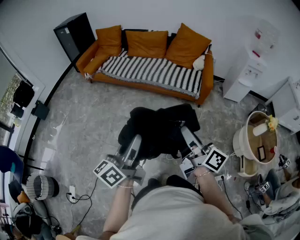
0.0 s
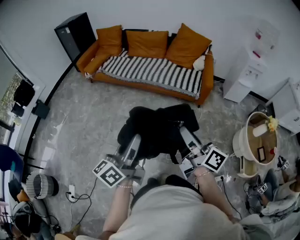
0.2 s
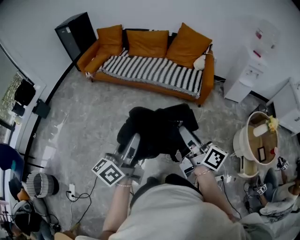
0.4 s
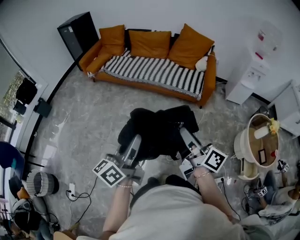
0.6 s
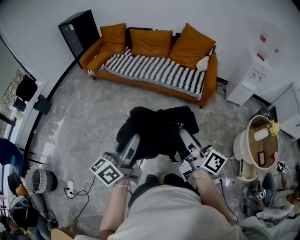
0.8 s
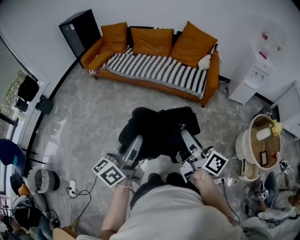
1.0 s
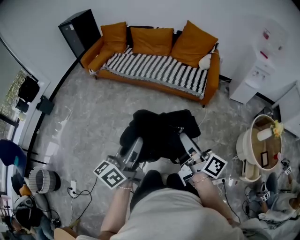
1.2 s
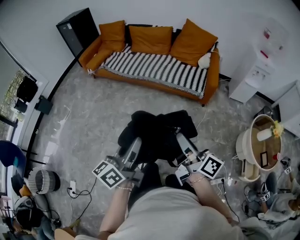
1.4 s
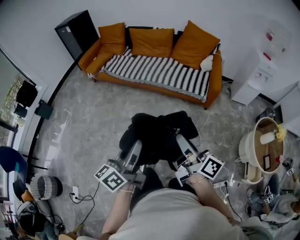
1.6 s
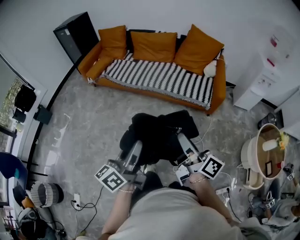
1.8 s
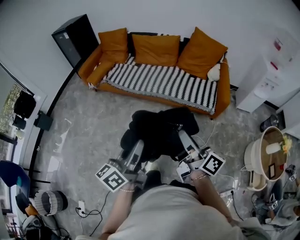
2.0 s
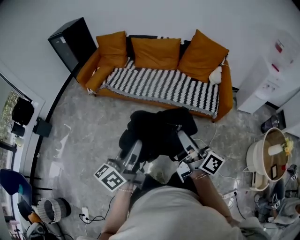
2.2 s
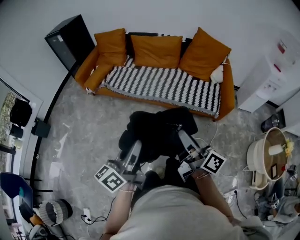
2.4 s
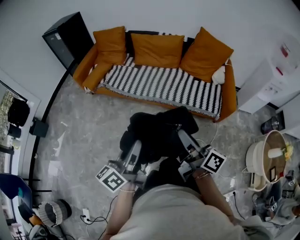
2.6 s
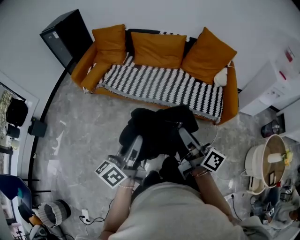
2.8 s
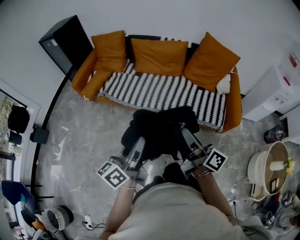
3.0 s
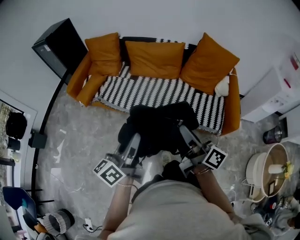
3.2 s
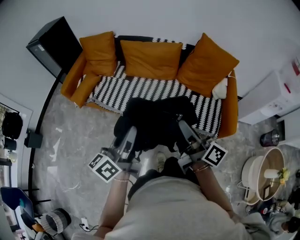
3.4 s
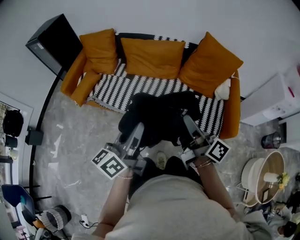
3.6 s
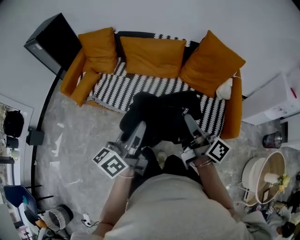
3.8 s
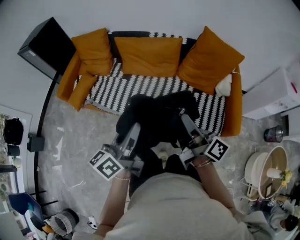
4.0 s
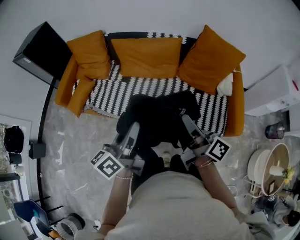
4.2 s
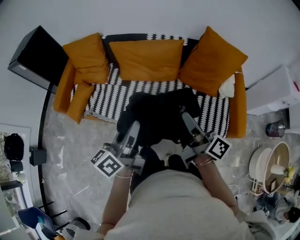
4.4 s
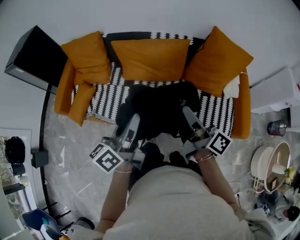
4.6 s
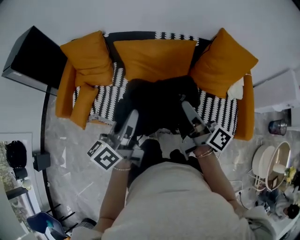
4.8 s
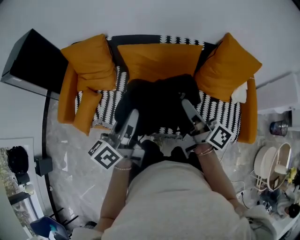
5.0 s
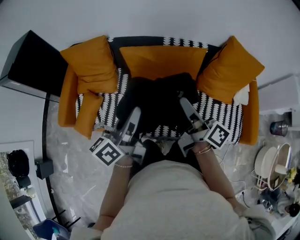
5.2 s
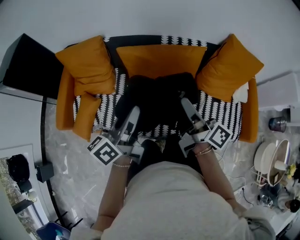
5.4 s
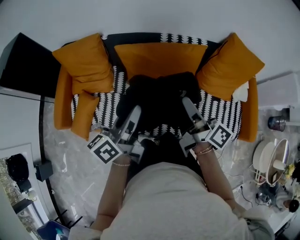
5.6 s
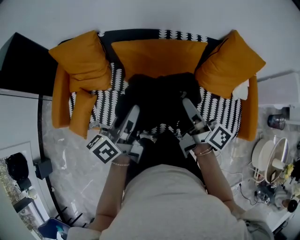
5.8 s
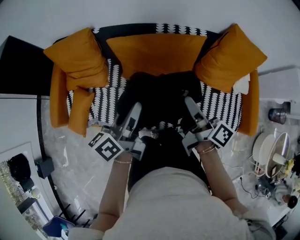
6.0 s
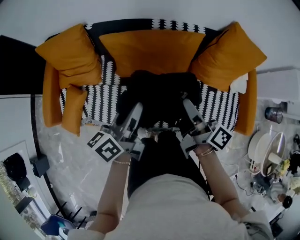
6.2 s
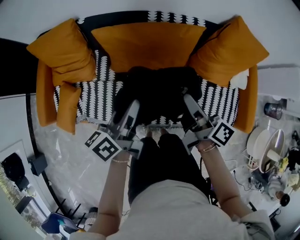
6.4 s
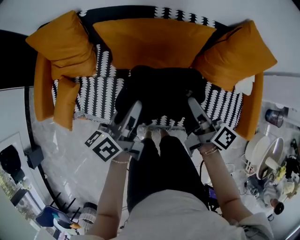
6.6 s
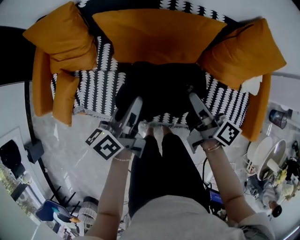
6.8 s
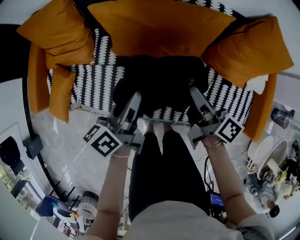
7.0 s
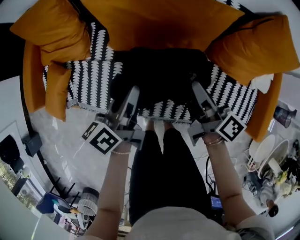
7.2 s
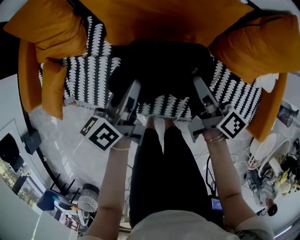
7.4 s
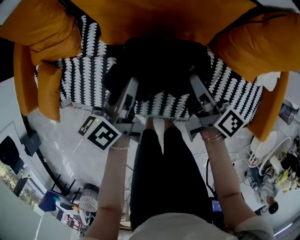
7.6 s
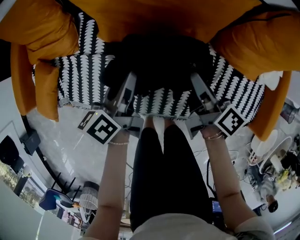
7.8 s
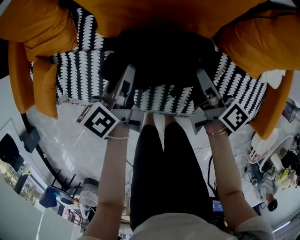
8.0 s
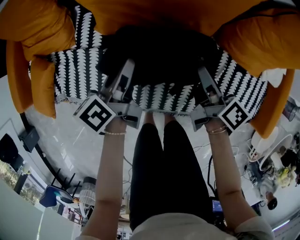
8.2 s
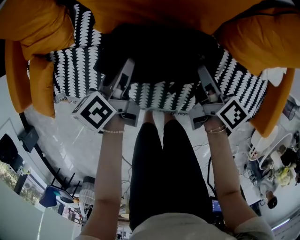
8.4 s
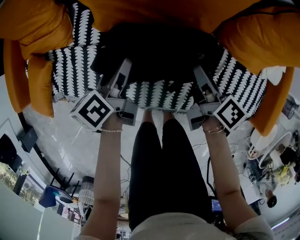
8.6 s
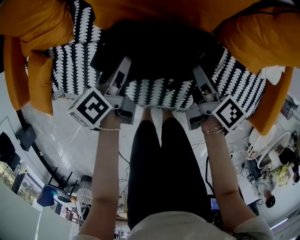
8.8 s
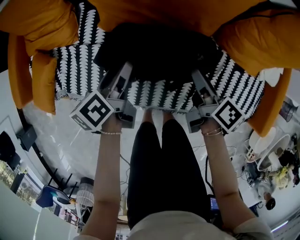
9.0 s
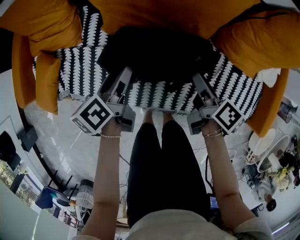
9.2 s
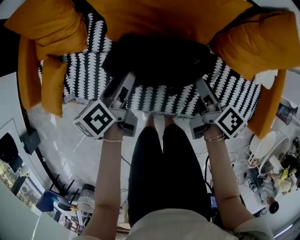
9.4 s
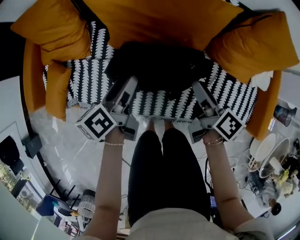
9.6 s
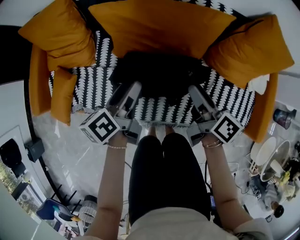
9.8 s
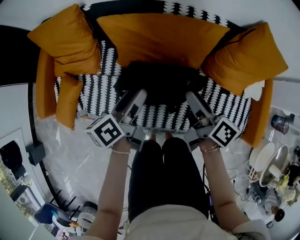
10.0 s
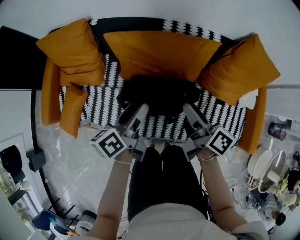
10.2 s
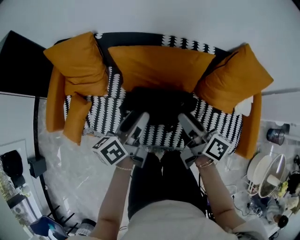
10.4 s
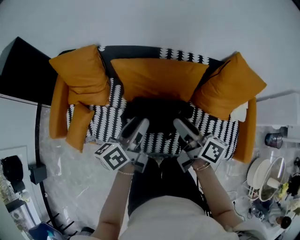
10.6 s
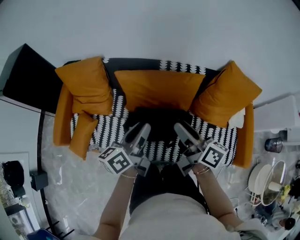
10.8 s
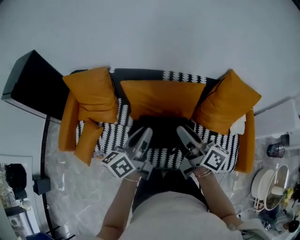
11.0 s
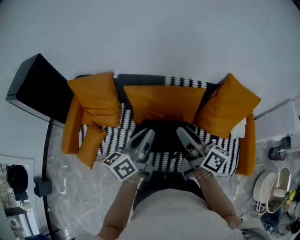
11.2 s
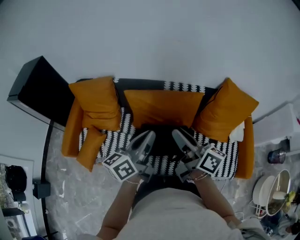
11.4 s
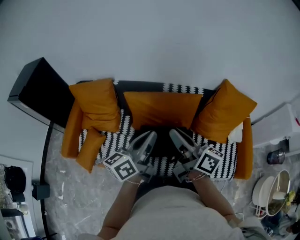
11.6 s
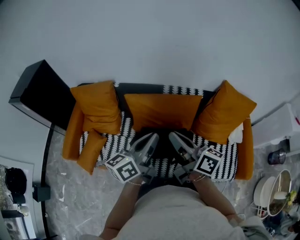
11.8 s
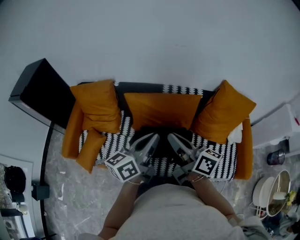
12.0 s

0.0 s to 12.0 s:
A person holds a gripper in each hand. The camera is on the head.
0.0 to 1.6 s: Both grippers travel together forward, approximately 5 cm.
1.6 to 3.0 s: The pair of grippers is taken forward, roughly 40 cm.
3.0 to 4.4 s: The grippers both shift forward by some 35 cm.
4.4 to 6.0 s: The grippers both shift forward and to the left by approximately 30 cm.
6.0 to 7.6 s: The grippers both shift downward by approximately 25 cm.
7.6 to 9.0 s: Both grippers travel together downward, roughly 5 cm. The left gripper opens its fingers; the right gripper opens its fingers.
9.0 to 10.4 s: The two grippers go about 25 cm upward. The right gripper turns by roughly 20 degrees. Meanwhile the left gripper changes its angle by about 20 degrees.
10.4 to 12.0 s: The grippers both shift upward by roughly 15 cm. The left gripper rotates approximately 20 degrees, and closes, while the right gripper changes its angle by about 20 degrees, and closes its fingers.

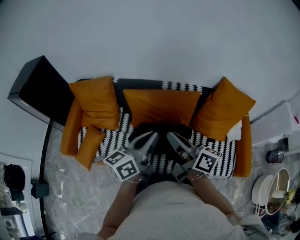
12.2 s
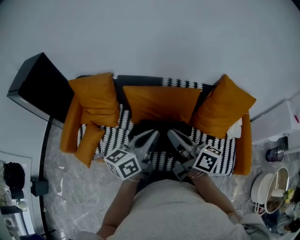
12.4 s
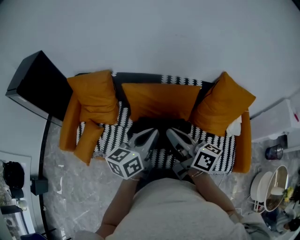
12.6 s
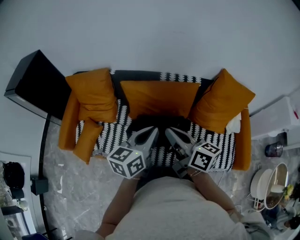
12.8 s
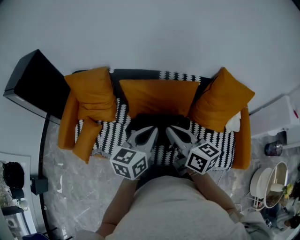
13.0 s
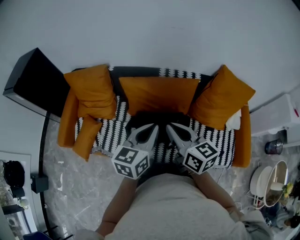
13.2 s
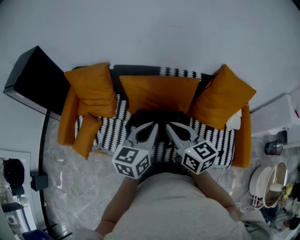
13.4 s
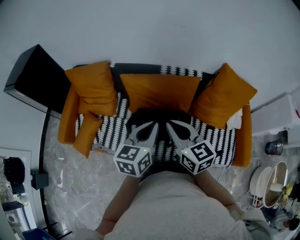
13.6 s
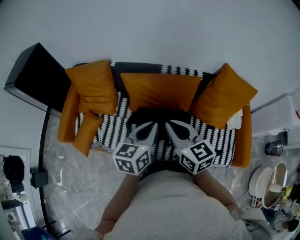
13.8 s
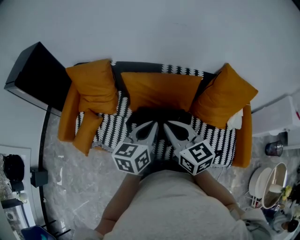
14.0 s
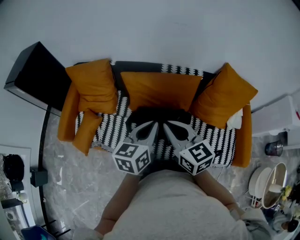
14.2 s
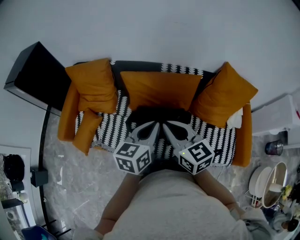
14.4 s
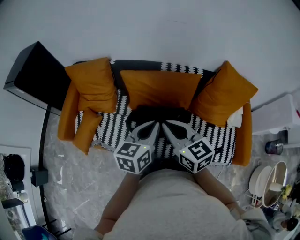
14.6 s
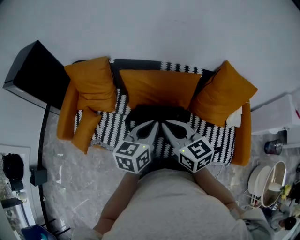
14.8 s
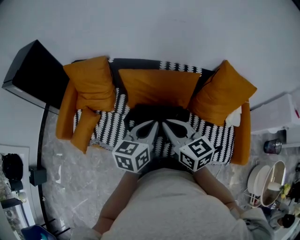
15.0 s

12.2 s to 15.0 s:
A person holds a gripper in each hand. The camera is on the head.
12.2 to 13.6 s: The left gripper changes its angle by roughly 30 degrees. The right gripper rolls counterclockwise, seen from behind, by roughly 40 degrees.
13.6 to 15.0 s: The grippers move only a little.

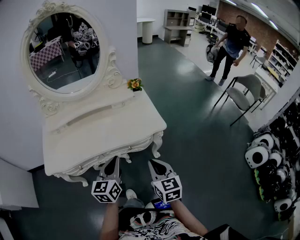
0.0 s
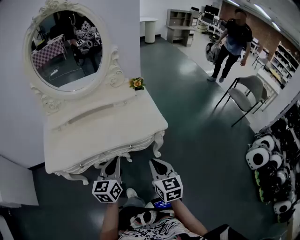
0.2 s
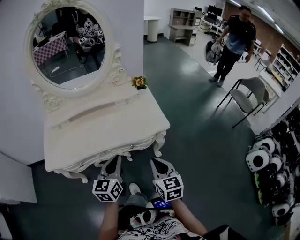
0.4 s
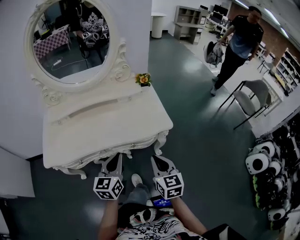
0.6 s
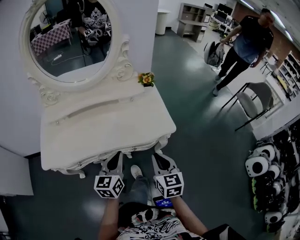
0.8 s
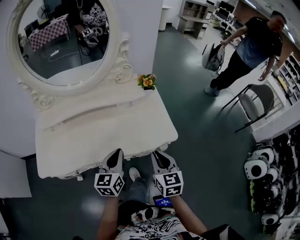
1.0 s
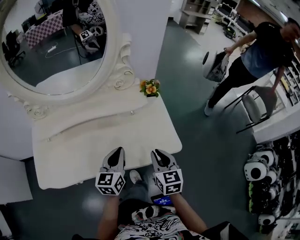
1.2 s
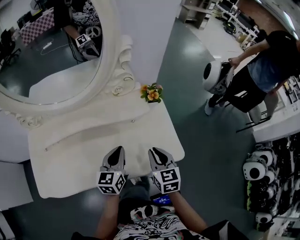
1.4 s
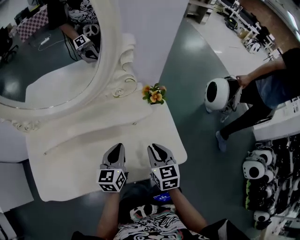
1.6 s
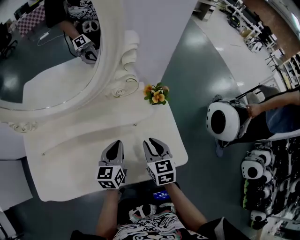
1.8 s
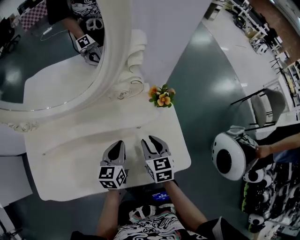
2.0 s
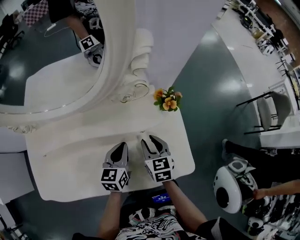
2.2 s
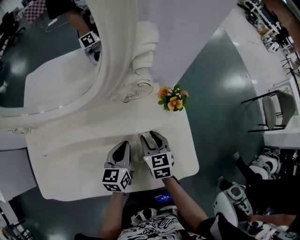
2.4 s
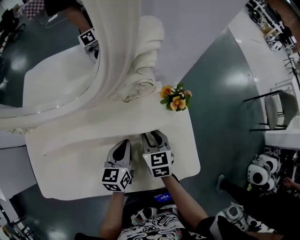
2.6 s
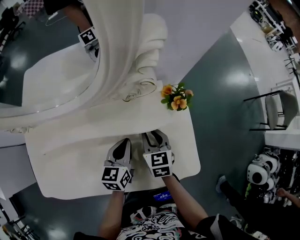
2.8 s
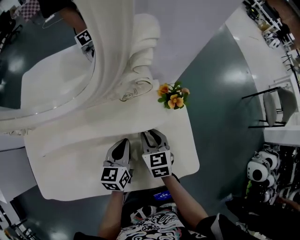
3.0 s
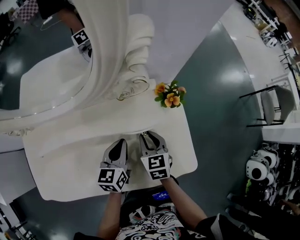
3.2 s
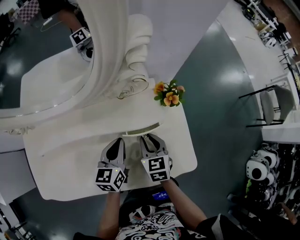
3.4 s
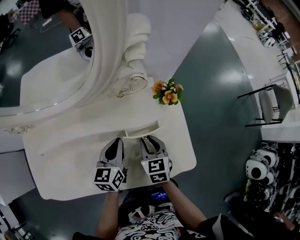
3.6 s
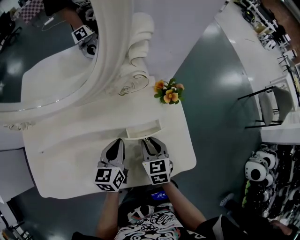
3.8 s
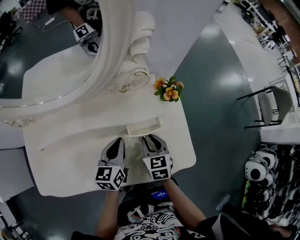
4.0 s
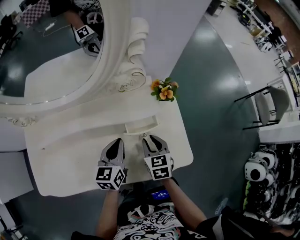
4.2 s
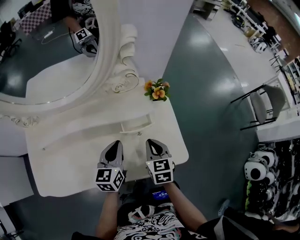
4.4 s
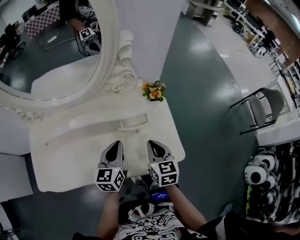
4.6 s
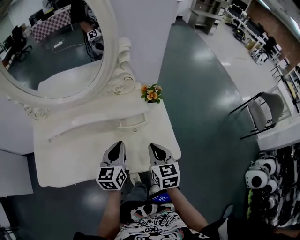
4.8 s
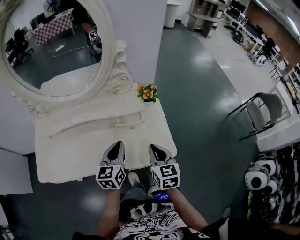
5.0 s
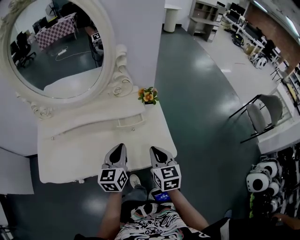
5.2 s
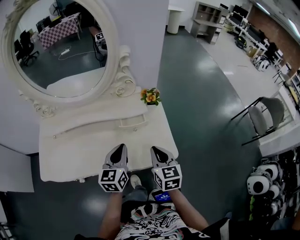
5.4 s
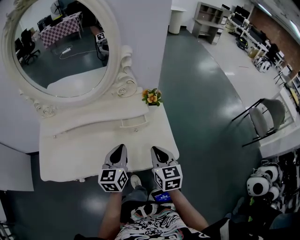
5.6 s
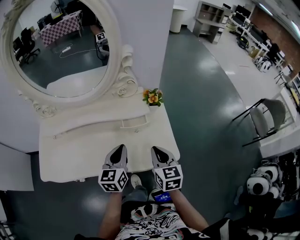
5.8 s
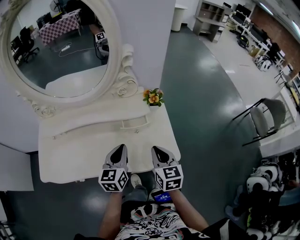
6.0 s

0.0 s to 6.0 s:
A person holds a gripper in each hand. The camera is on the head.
0.0 to 1.6 s: Both grippers move forward, about 35 cm.
1.6 to 3.0 s: The right gripper shifts about 15 cm forward, downward and to the left, while the left gripper is displaced forward and downward by roughly 10 cm.
3.0 to 4.4 s: The left gripper is displaced backward and upward by about 10 cm. Meanwhile the right gripper is displaced backward by some 10 cm, and closes up.
4.4 to 6.0 s: The right gripper goes approximately 10 cm upward and backward; the left gripper goes about 10 cm backward and upward.

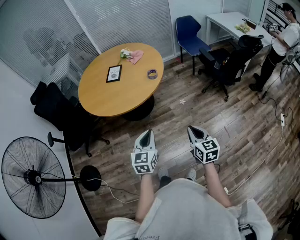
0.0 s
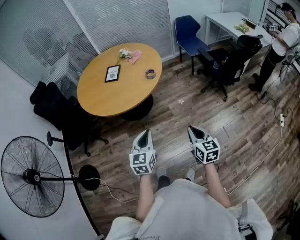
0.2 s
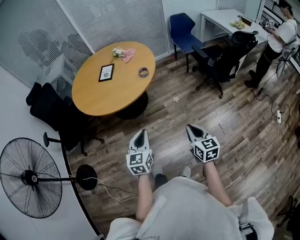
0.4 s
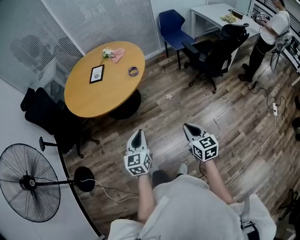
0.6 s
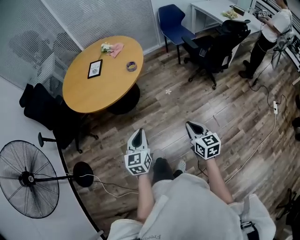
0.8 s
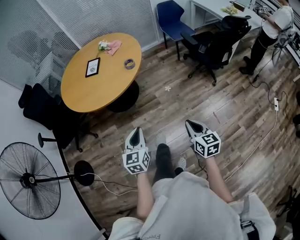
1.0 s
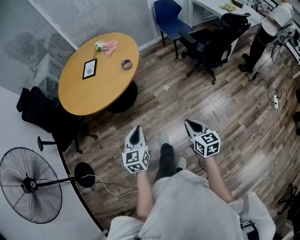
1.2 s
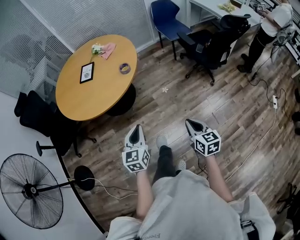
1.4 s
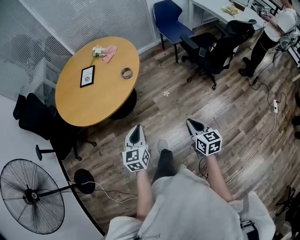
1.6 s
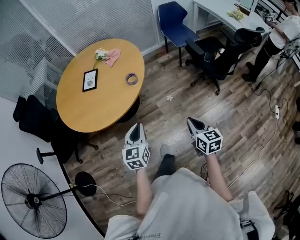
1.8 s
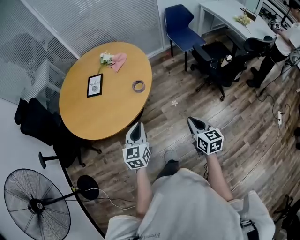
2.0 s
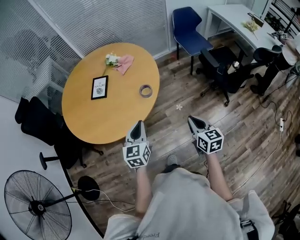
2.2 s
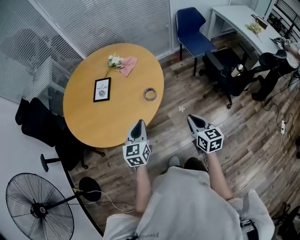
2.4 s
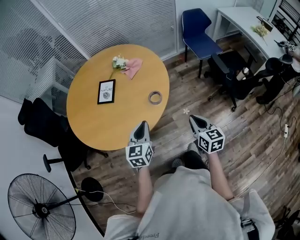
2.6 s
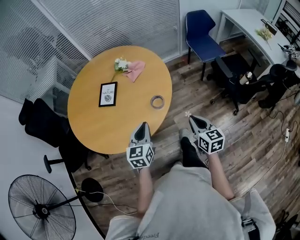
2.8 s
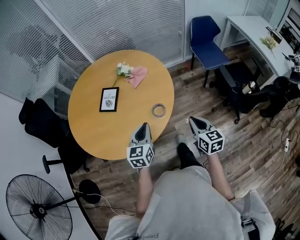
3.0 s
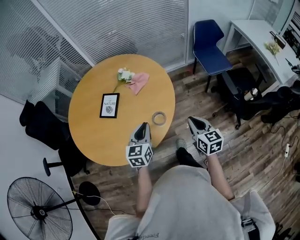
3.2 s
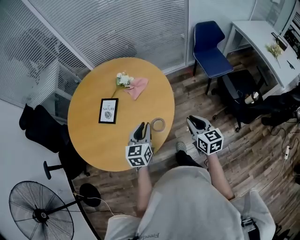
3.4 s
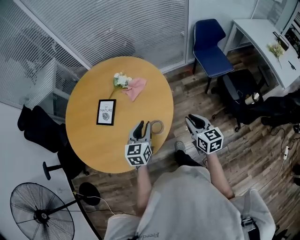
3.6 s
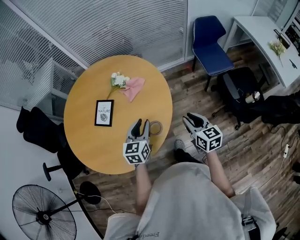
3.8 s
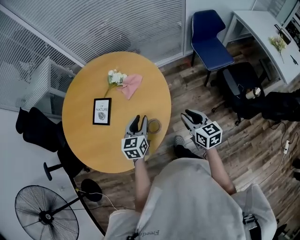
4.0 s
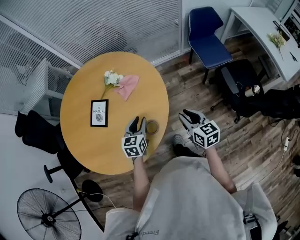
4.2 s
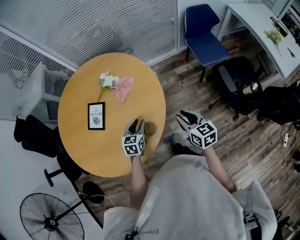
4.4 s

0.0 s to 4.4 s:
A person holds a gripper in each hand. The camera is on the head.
0.0 to 1.4 s: The two grippers go approximately 15 cm to the right.
1.4 to 3.0 s: Both grippers are carried forward, approximately 50 cm.
3.0 to 4.4 s: The left gripper is displaced forward and downward by some 25 cm, and opens its fingers. The right gripper is displaced forward by roughly 20 cm, and opens its fingers.
